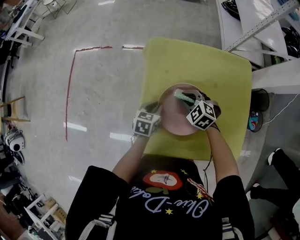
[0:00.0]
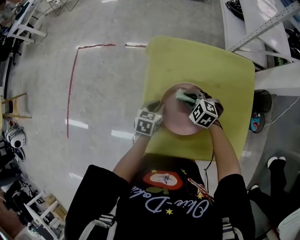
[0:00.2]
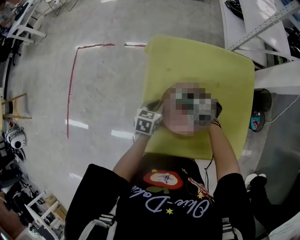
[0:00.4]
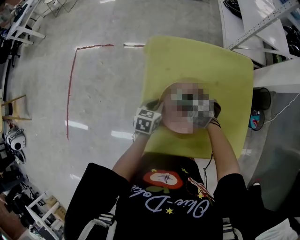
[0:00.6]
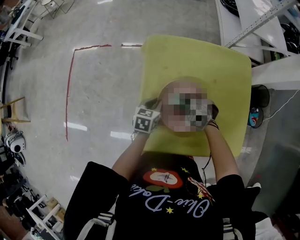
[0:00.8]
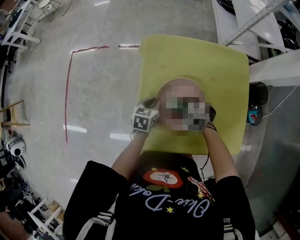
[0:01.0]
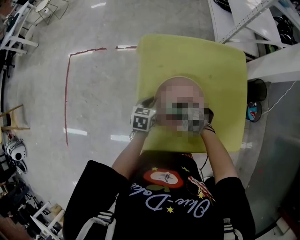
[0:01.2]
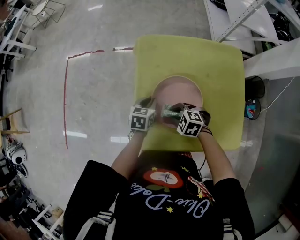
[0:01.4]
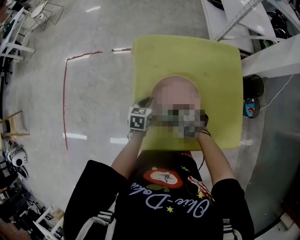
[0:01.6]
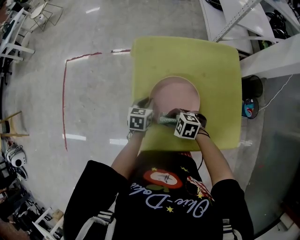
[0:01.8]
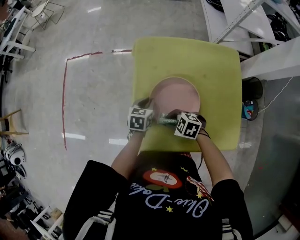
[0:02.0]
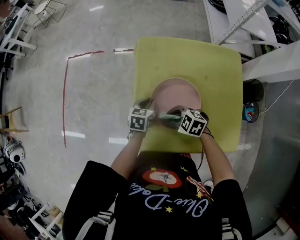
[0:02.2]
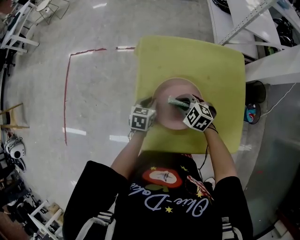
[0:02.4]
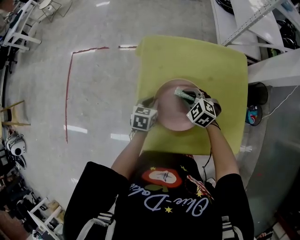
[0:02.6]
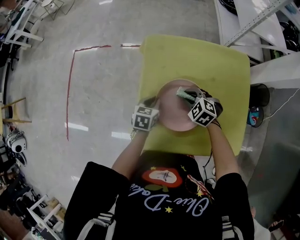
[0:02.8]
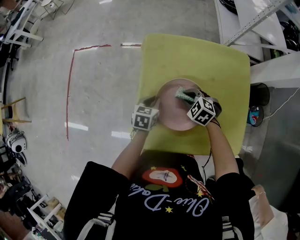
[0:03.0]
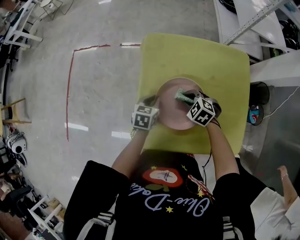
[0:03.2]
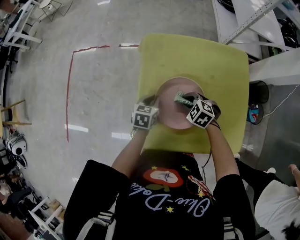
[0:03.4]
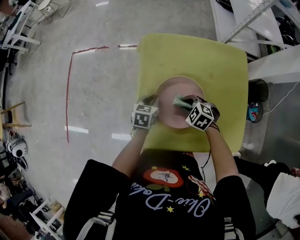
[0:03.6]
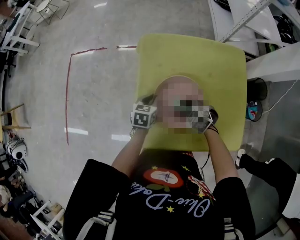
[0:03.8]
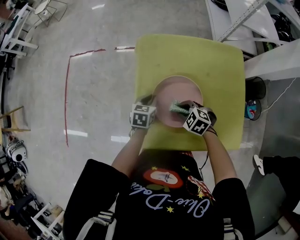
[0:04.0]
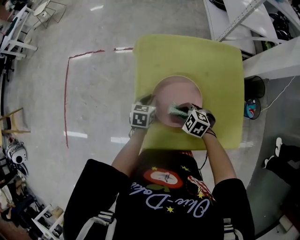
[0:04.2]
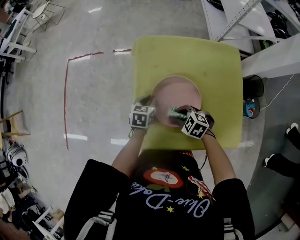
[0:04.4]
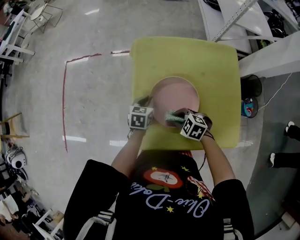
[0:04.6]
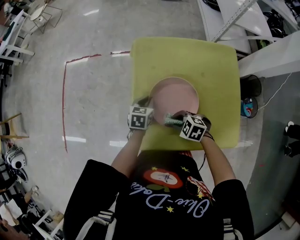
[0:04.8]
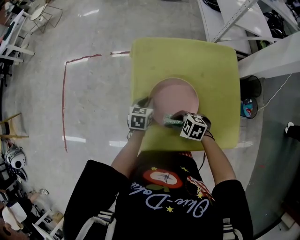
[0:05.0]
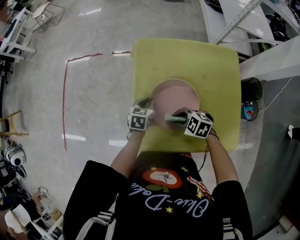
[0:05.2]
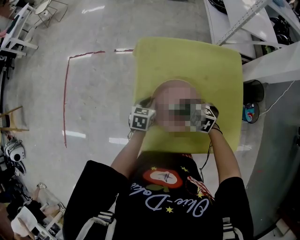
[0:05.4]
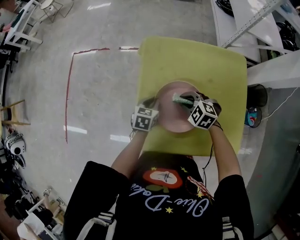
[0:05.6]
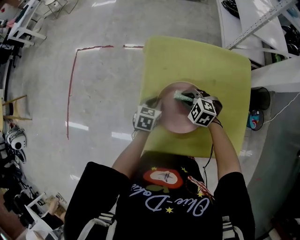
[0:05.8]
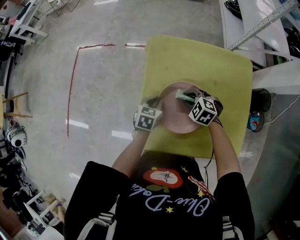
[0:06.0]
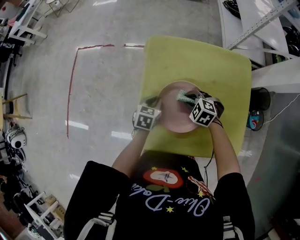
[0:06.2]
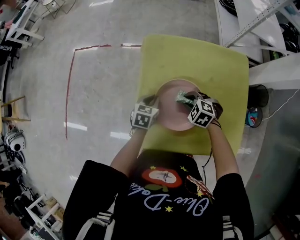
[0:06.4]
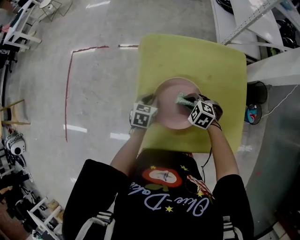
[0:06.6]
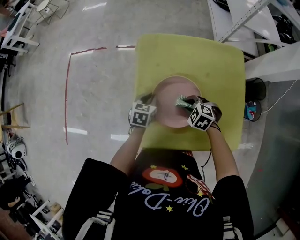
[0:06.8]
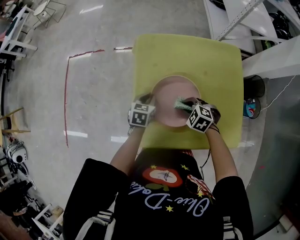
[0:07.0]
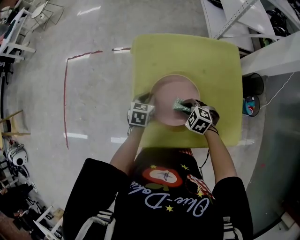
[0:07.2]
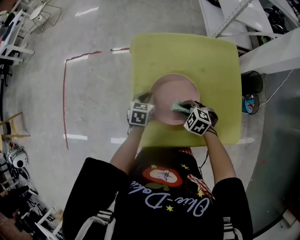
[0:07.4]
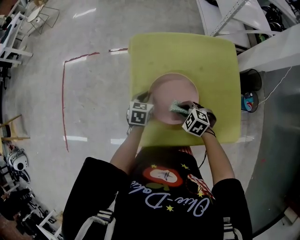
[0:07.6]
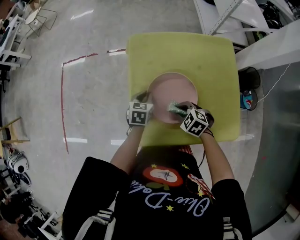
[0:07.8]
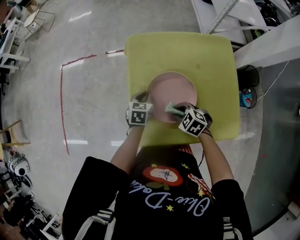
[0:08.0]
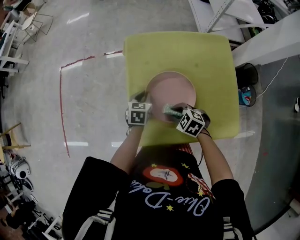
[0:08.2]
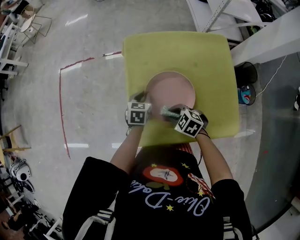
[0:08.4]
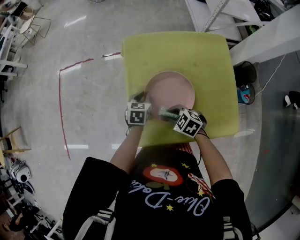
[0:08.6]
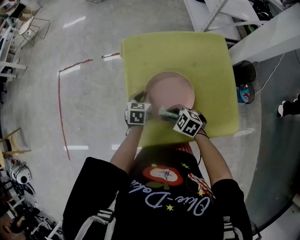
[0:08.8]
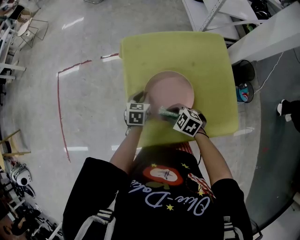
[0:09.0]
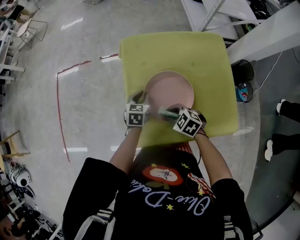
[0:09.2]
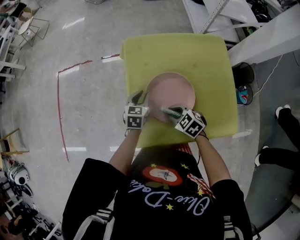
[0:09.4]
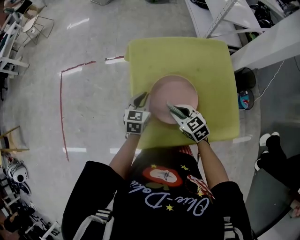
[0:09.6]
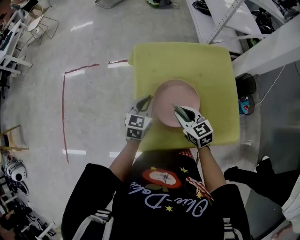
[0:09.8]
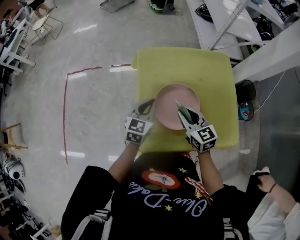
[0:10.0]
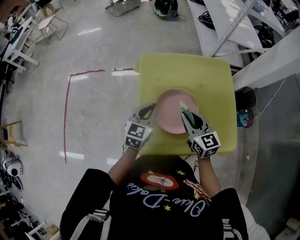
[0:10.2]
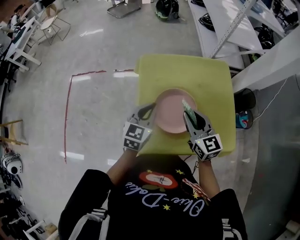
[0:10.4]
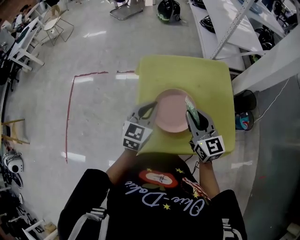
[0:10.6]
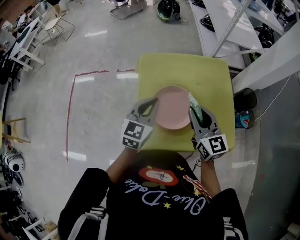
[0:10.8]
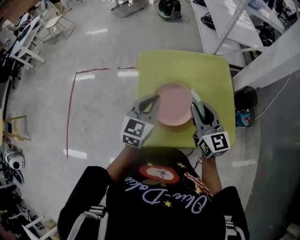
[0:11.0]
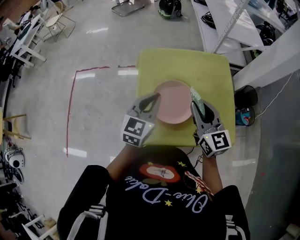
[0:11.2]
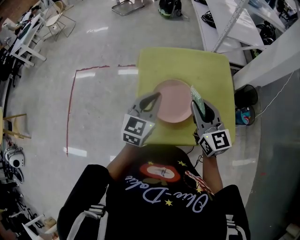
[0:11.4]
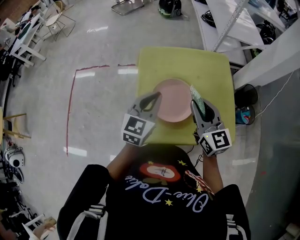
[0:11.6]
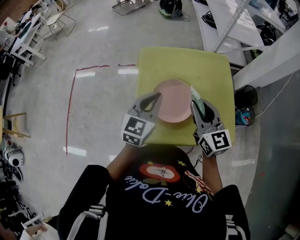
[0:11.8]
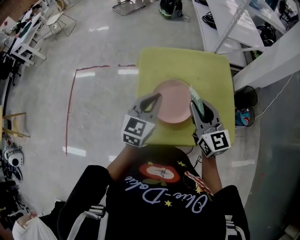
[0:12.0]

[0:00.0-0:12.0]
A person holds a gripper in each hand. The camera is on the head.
0:00.0 to 0:01.6: The right gripper goes about 15 cm backward and to the left.
0:01.6 to 0:03.0: The right gripper goes roughly 10 cm forward and to the right.
0:03.0 to 0:04.4: The right gripper goes approximately 10 cm backward.
0:04.4 to 0:06.0: The right gripper heads forward, covering about 10 cm.
0:06.0 to 0:07.6: The right gripper goes approximately 10 cm backward.
0:07.6 to 0:09.0: The right gripper ends up some 5 cm from where it was.
0:09.0 to 0:10.4: The grippers both shift upward by roughly 20 cm. The left gripper rotates roughly 30 degrees. The right gripper angles its fingers upward, by approximately 40 degrees.
0:10.4 to 0:12.0: The two grippers go approximately 5 cm upward.

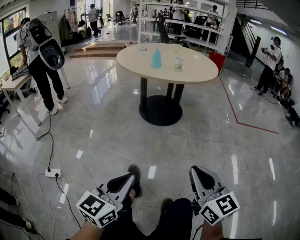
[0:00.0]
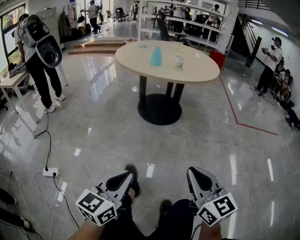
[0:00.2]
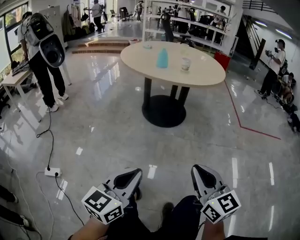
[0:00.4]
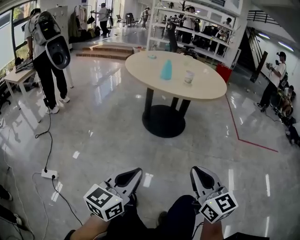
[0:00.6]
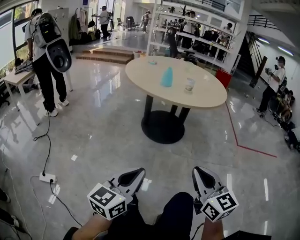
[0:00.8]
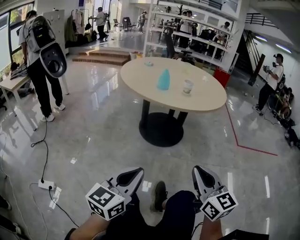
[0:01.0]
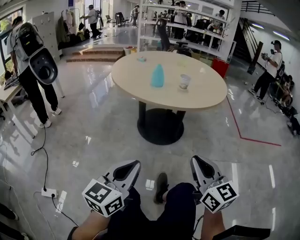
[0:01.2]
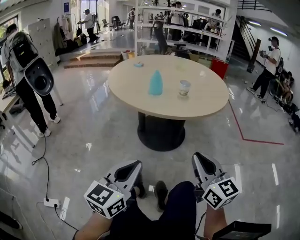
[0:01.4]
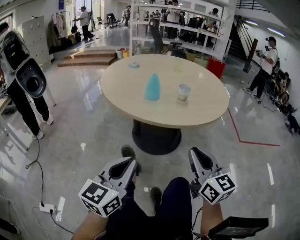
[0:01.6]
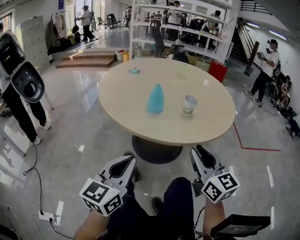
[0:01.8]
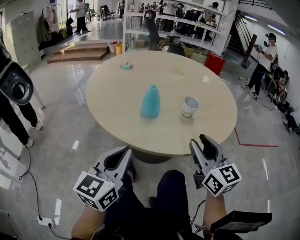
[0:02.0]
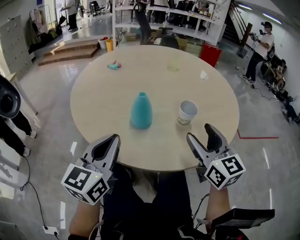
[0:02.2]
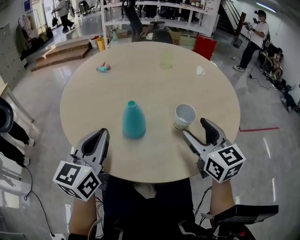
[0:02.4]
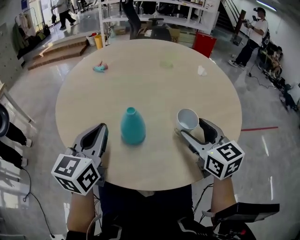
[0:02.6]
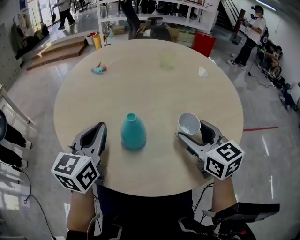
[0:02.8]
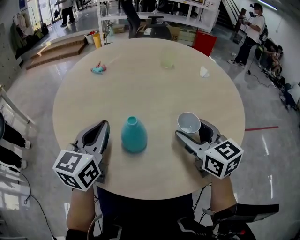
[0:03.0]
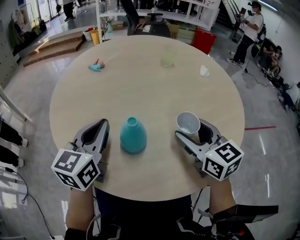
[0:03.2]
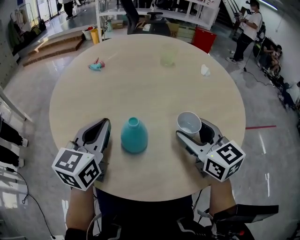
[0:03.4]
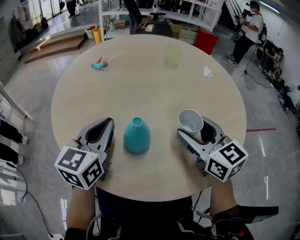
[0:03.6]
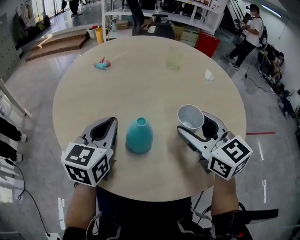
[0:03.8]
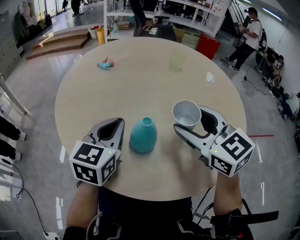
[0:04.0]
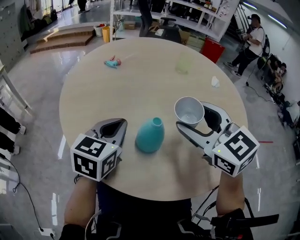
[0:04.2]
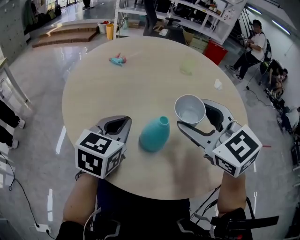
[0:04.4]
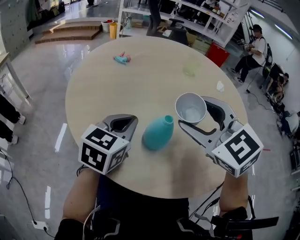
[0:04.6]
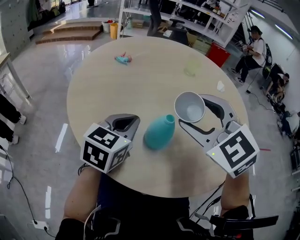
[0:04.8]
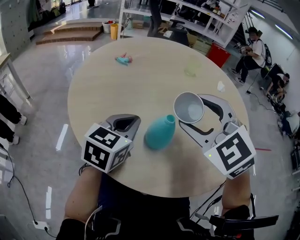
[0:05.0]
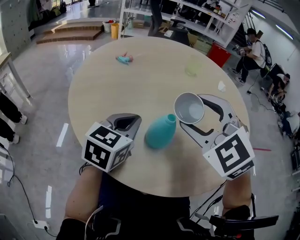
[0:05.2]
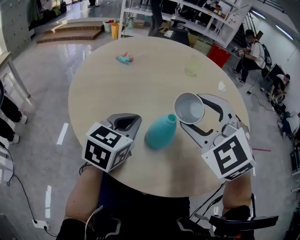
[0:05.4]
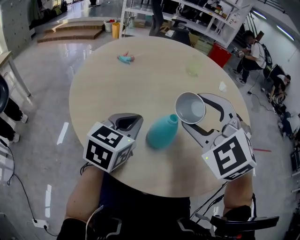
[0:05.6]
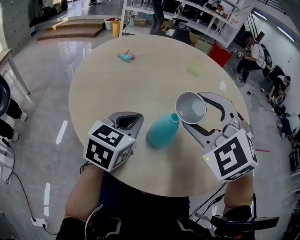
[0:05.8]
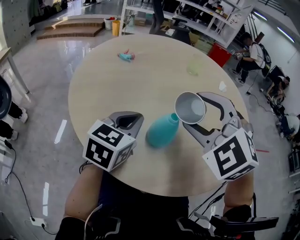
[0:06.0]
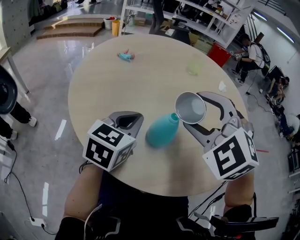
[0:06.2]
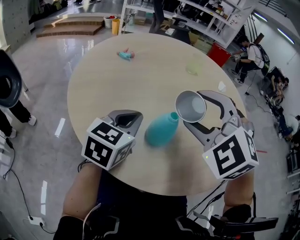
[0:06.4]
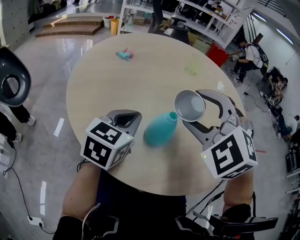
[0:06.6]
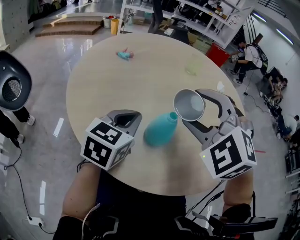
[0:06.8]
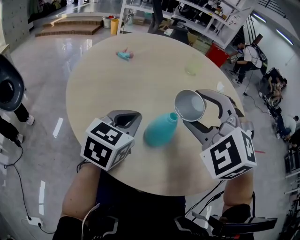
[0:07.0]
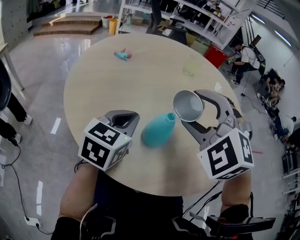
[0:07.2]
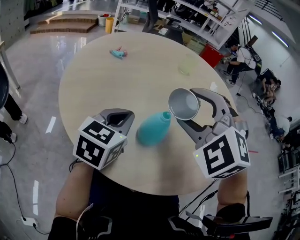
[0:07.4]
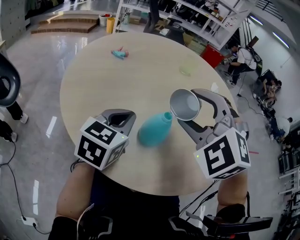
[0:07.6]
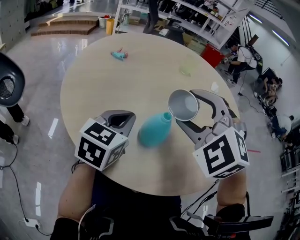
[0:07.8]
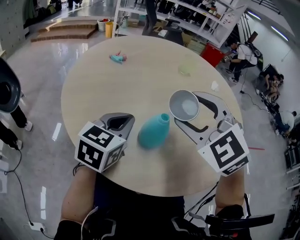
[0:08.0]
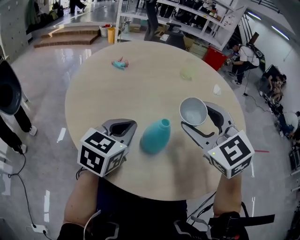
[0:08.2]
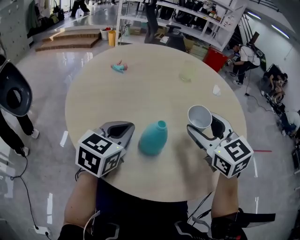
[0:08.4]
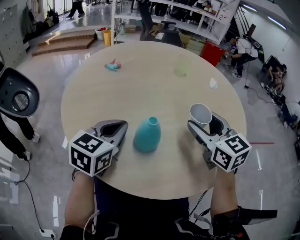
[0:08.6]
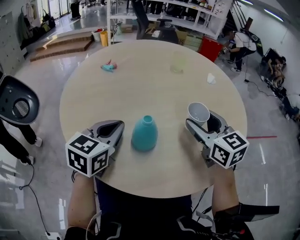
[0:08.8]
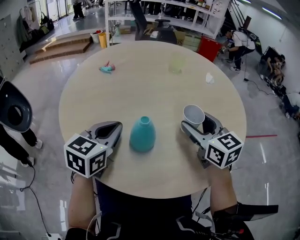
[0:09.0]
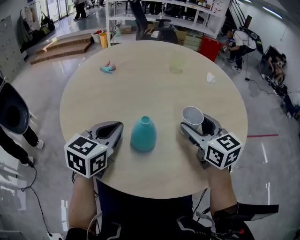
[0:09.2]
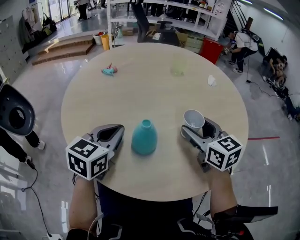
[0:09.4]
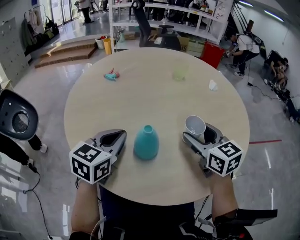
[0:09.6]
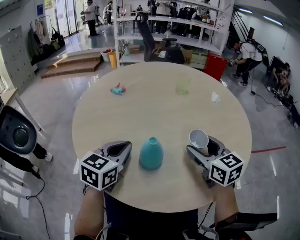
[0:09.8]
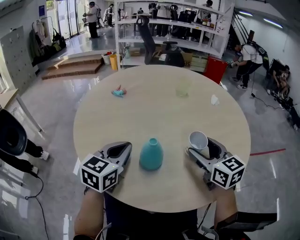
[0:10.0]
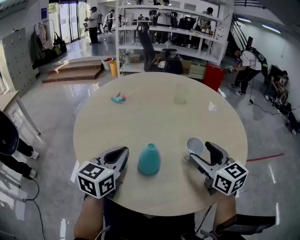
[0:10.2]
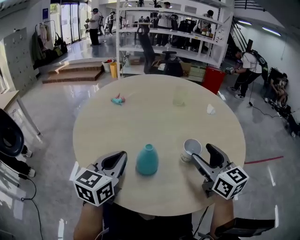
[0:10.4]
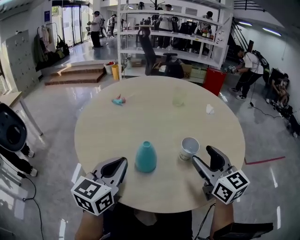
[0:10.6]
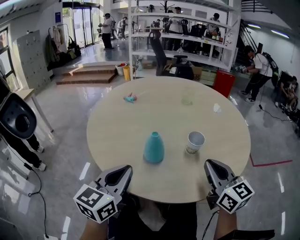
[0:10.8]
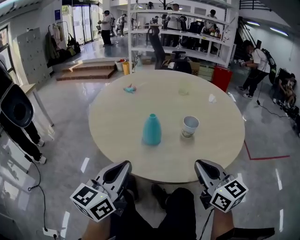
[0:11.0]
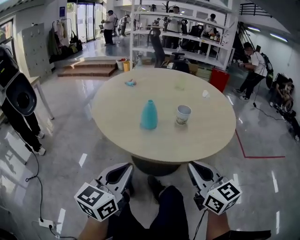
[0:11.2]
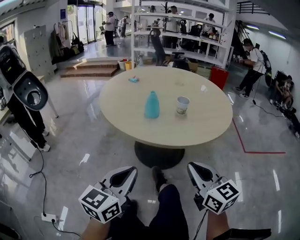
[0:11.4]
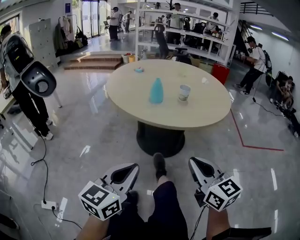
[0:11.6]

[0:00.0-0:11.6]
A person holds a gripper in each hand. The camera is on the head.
0:00.0 to 0:01.4: The two grippers go approximately 30 cm forward.
0:01.4 to 0:02.8: The two grippers travel together, forward, about 50 cm. The right gripper opens.
0:02.8 to 0:04.4: The right gripper goes approximately 15 cm to the left and upward, and swivels about 30 degrees; the left gripper shifts by about 5 cm.
0:04.4 to 0:05.8: The right gripper turns by some 30 degrees.
0:05.8 to 0:07.2: The grippers make only small movements.
0:07.2 to 0:08.8: The right gripper shifts some 15 cm to the right and downward, and twists roughly 60 degrees clockwise, seen from behind.
0:08.8 to 0:10.2: The grippers move only a little.
0:10.2 to 0:11.6: Both grippers are carried backward, roughly 50 cm. The right gripper closes up.
